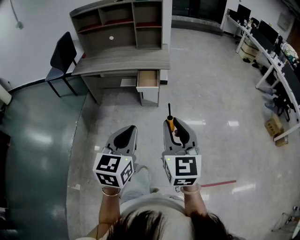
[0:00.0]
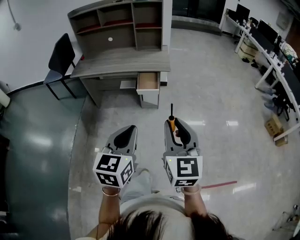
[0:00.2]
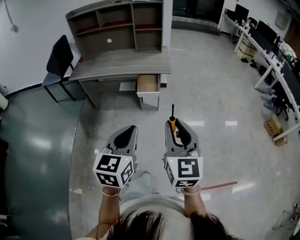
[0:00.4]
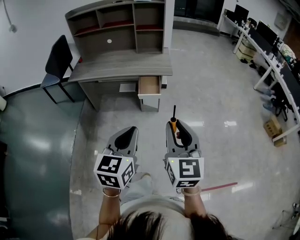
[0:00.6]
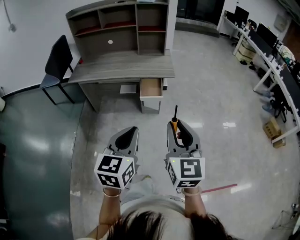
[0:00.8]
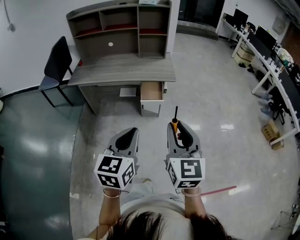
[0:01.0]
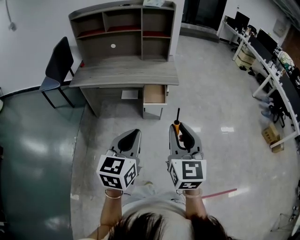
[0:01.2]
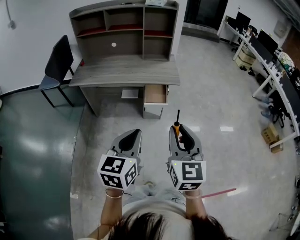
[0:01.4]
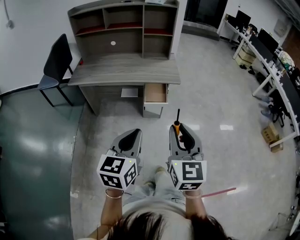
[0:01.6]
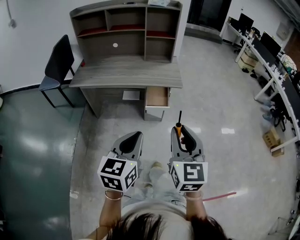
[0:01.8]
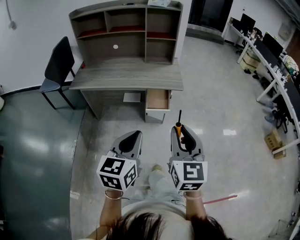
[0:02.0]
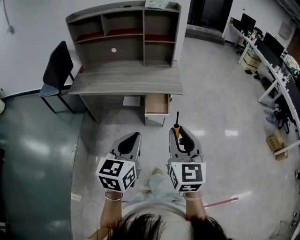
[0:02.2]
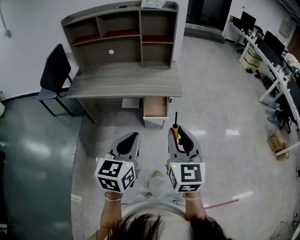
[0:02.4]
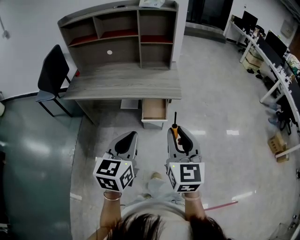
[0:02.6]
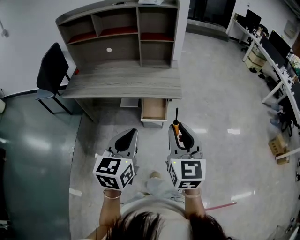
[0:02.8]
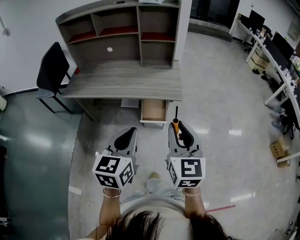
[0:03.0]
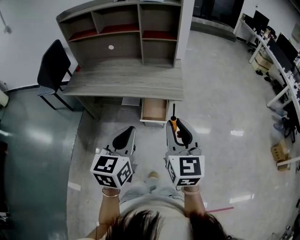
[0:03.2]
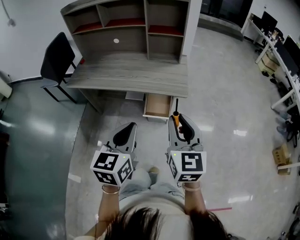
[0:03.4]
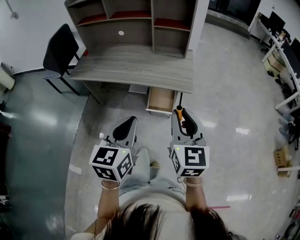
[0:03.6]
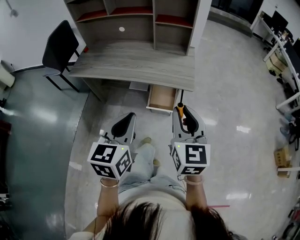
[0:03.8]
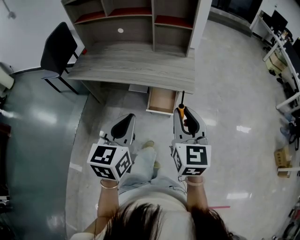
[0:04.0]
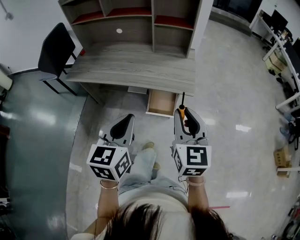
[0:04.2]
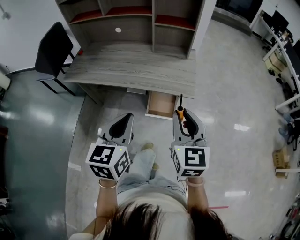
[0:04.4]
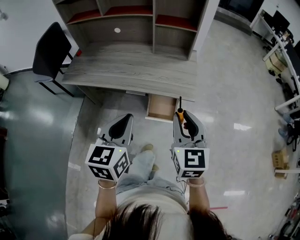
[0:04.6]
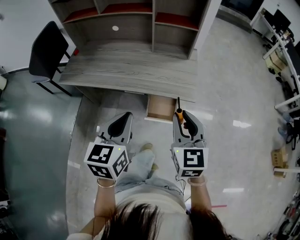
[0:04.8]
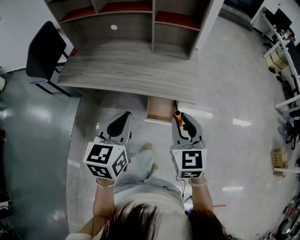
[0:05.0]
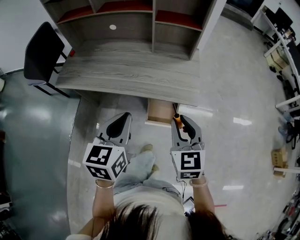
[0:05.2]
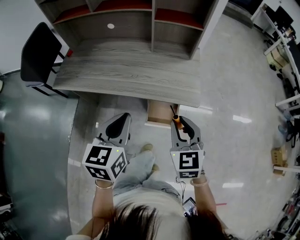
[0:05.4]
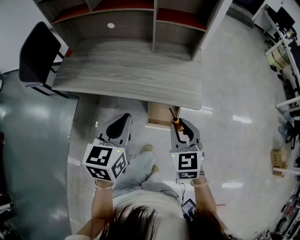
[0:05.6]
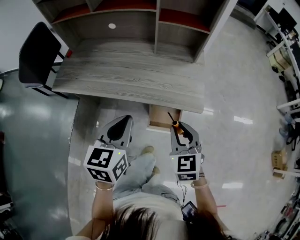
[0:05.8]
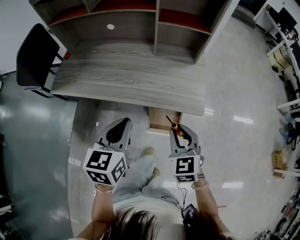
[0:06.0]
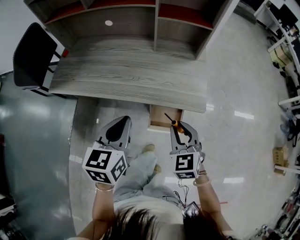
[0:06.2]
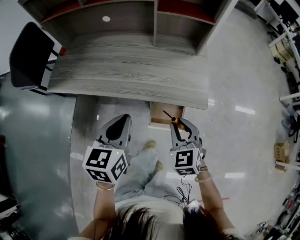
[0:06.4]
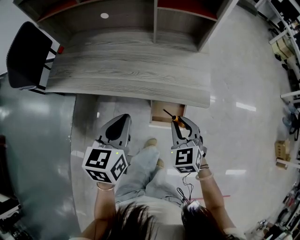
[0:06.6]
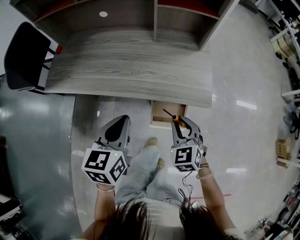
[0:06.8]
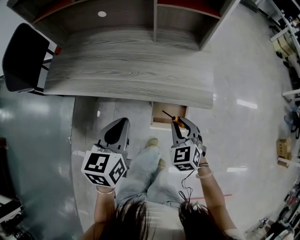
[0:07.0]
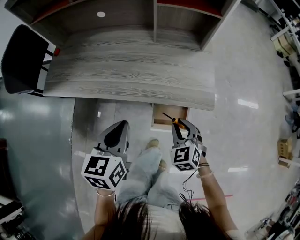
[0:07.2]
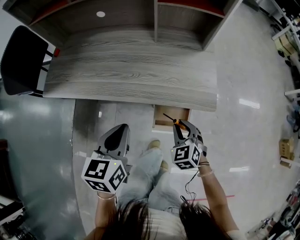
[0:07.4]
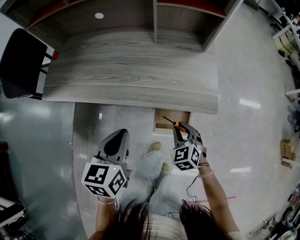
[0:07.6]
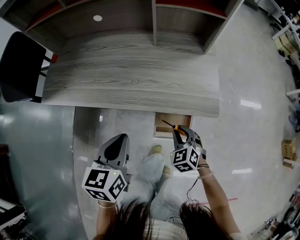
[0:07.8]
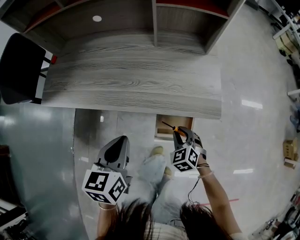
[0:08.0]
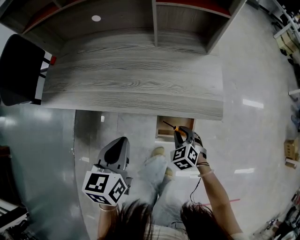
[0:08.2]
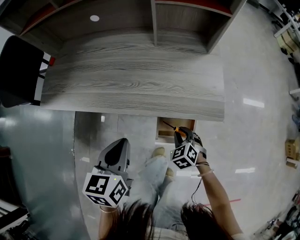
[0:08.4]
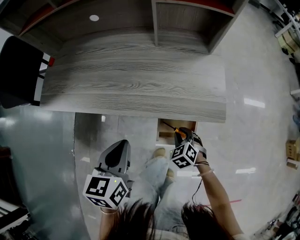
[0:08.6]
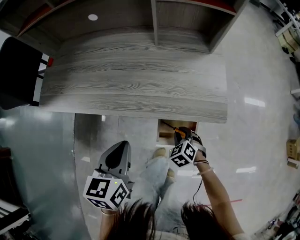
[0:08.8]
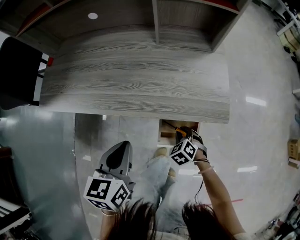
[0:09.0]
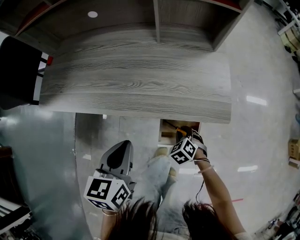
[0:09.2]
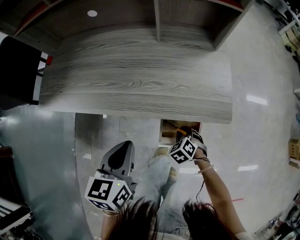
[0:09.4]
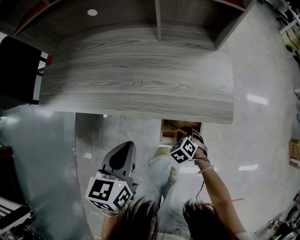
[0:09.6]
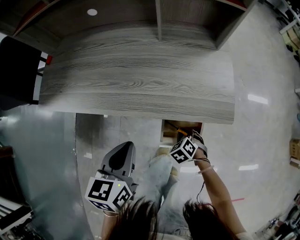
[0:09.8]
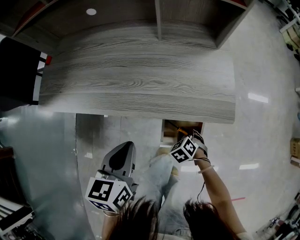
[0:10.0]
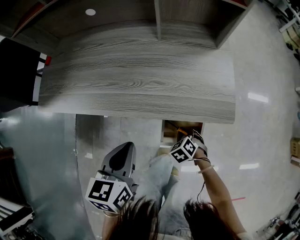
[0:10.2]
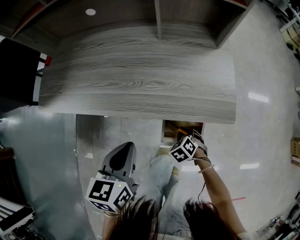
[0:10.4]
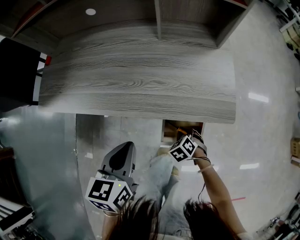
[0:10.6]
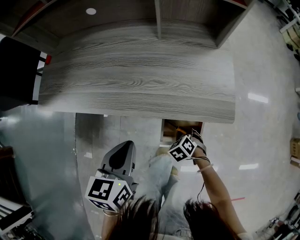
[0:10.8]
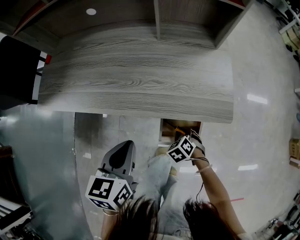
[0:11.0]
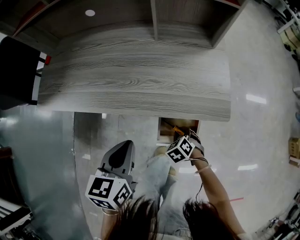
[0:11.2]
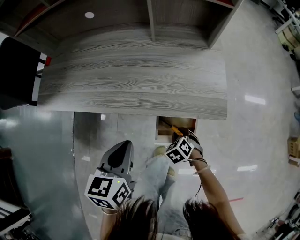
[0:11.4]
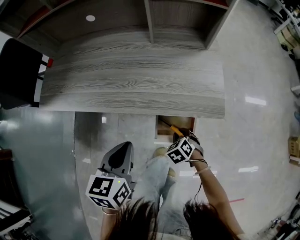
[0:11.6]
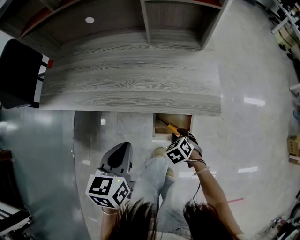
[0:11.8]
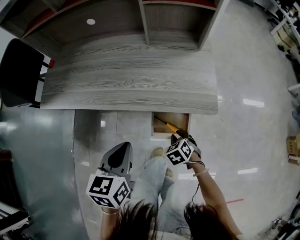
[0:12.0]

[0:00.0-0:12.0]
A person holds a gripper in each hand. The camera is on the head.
0:00.0 to 0:01.6: The two grippers go some 20 cm forward and to the left.
0:01.6 to 0:03.0: Both grippers move forward, roughly 20 cm.
0:03.0 to 0:04.4: The grippers both shift forward by some 10 cm.
0:04.4 to 0:06.0: The right gripper travels downward and forward by approximately 20 cm, and rotates approximately 20 degrees. Meanwhile the left gripper heads forward and downward, covering approximately 20 cm.
0:06.0 to 0:07.6: The left gripper goes some 10 cm downward, while the right gripper moves downward, about 20 cm.
0:07.6 to 0:09.0: The left gripper ends up some 5 cm from where it was, while the right gripper heads downward, covering some 15 cm.
0:09.0 to 0:10.4: There are only small adjustments of the grippers.
0:10.4 to 0:12.0: The right gripper moves upward, about 5 cm. The left gripper heads backward, covering approximately 5 cm.

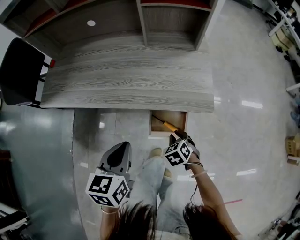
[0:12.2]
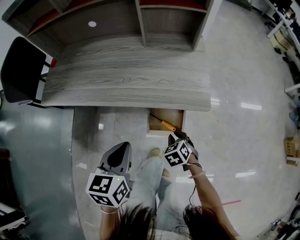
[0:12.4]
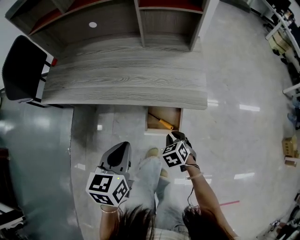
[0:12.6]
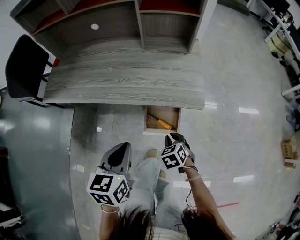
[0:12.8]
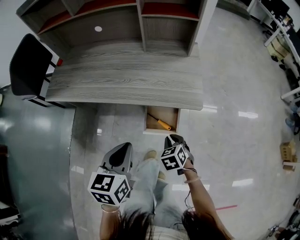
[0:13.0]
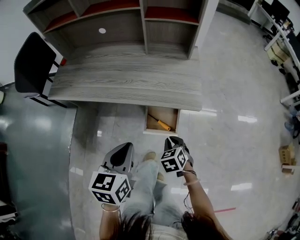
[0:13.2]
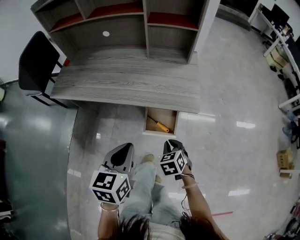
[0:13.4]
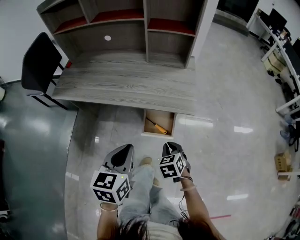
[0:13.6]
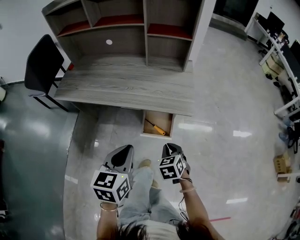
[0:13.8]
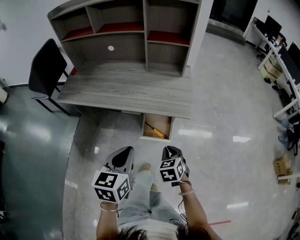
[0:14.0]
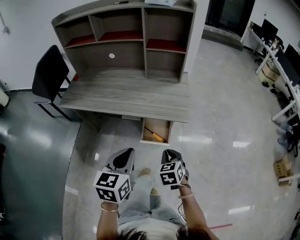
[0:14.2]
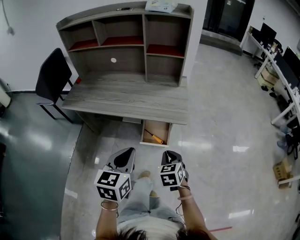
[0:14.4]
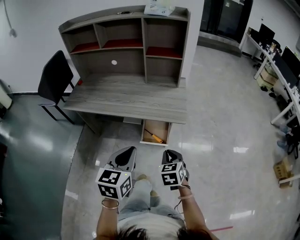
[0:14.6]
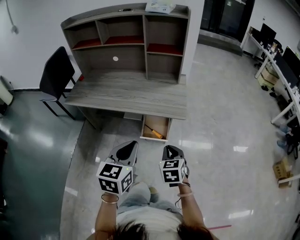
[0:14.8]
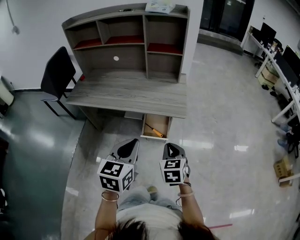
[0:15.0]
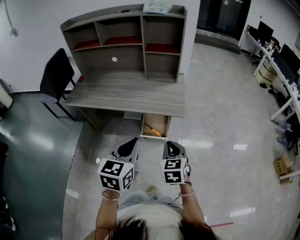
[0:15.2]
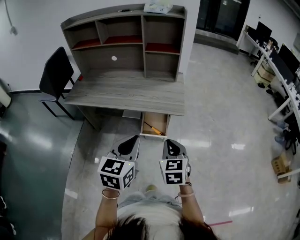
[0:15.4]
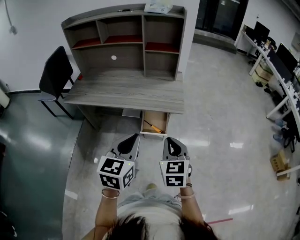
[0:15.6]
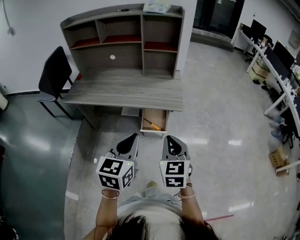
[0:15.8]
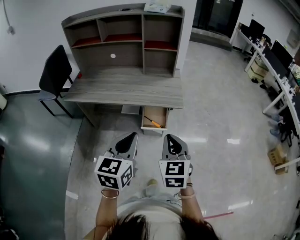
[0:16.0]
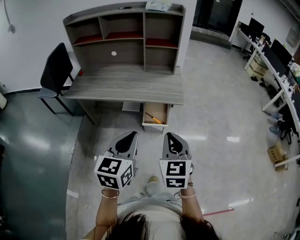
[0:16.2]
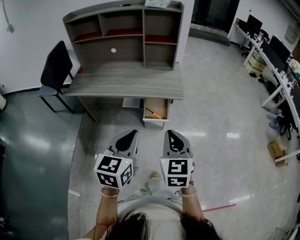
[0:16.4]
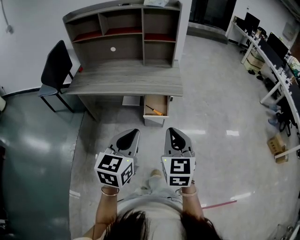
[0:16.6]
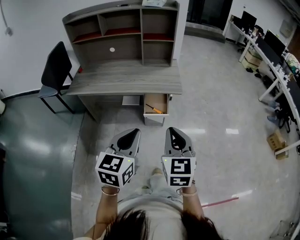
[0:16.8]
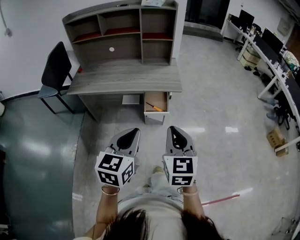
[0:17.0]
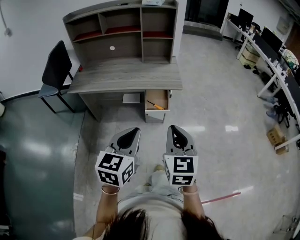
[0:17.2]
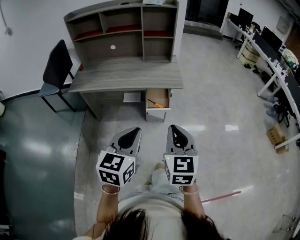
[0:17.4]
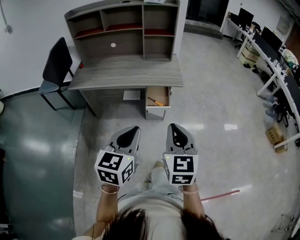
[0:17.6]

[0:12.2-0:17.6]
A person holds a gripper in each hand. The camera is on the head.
0:12.2 to 0:13.6: The left gripper travels backward and upward by roughly 15 cm. Meanwhile the right gripper goes about 15 cm upward and backward.
0:13.6 to 0:15.0: The left gripper travels upward, backward and to the right by about 15 cm. Meanwhile the right gripper heads upward and backward, covering some 20 cm, and changes its angle by some 20 degrees.
0:15.0 to 0:16.2: The right gripper heads upward and backward, covering roughly 15 cm. Meanwhile the left gripper goes about 10 cm backward.
0:16.2 to 0:17.6: Both grippers travel together backward, roughly 10 cm.

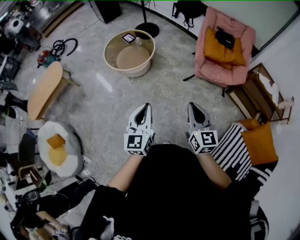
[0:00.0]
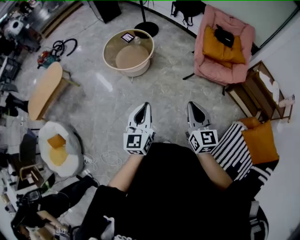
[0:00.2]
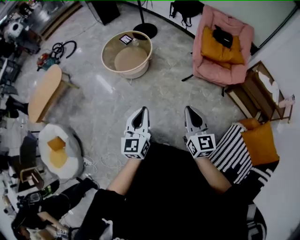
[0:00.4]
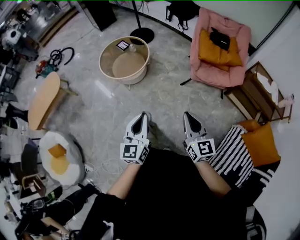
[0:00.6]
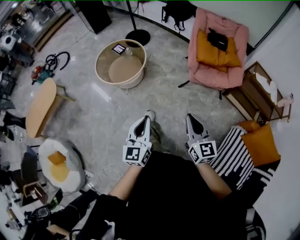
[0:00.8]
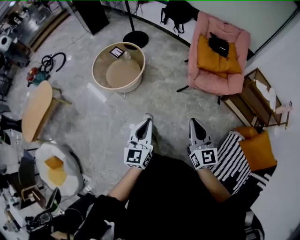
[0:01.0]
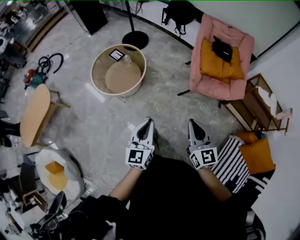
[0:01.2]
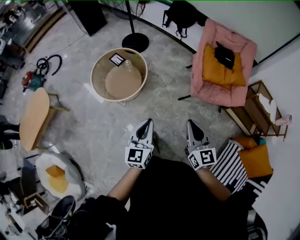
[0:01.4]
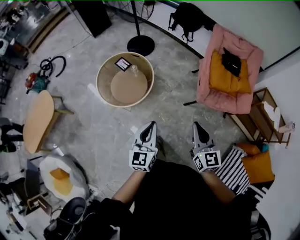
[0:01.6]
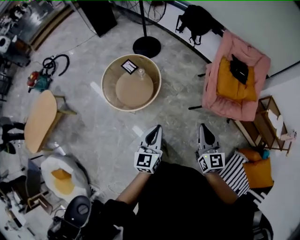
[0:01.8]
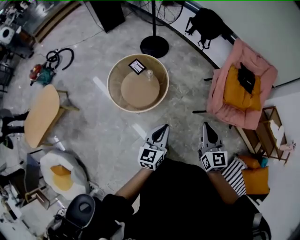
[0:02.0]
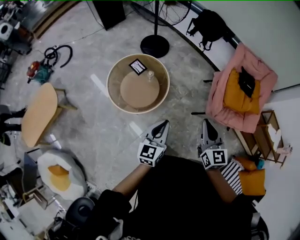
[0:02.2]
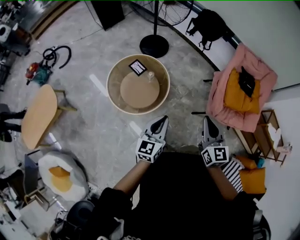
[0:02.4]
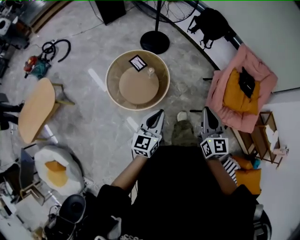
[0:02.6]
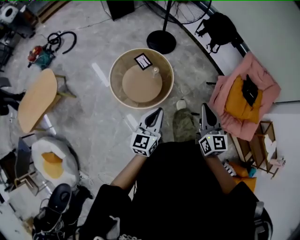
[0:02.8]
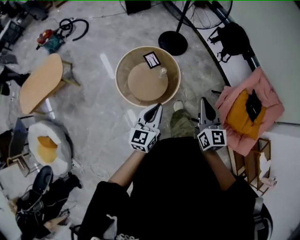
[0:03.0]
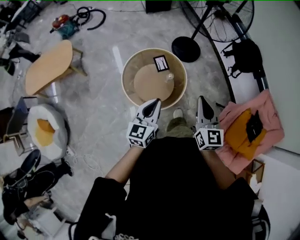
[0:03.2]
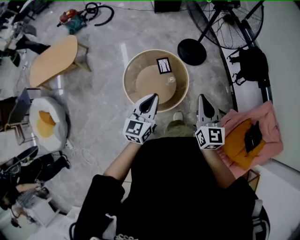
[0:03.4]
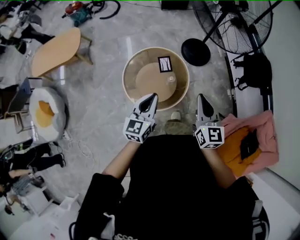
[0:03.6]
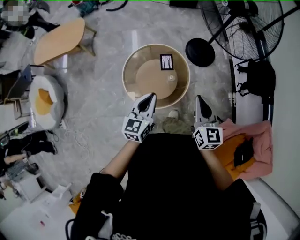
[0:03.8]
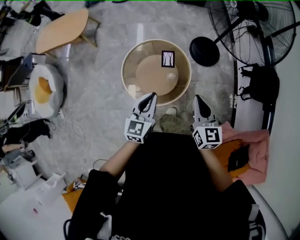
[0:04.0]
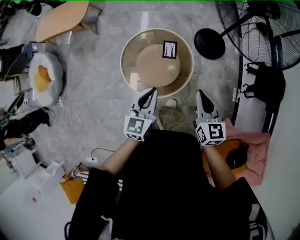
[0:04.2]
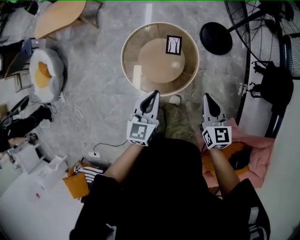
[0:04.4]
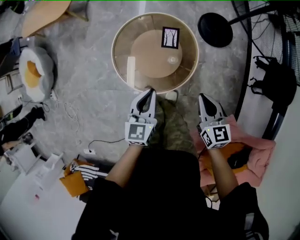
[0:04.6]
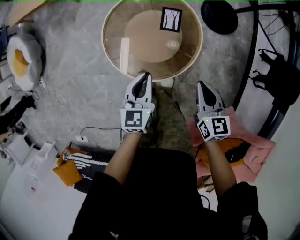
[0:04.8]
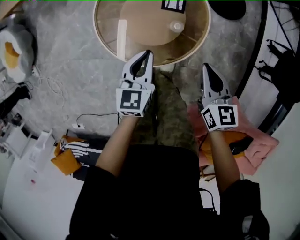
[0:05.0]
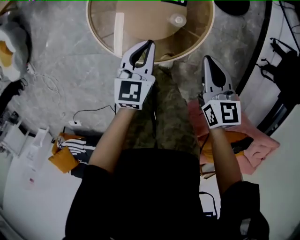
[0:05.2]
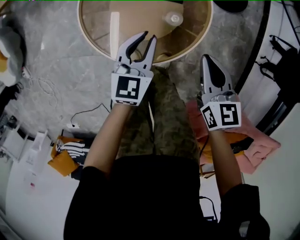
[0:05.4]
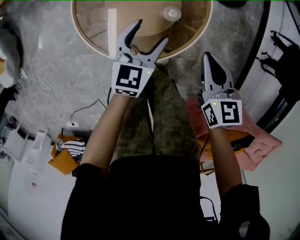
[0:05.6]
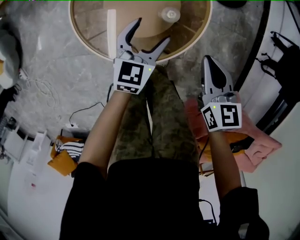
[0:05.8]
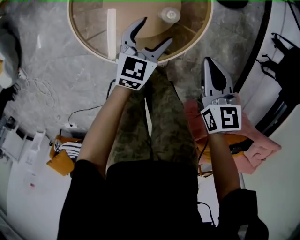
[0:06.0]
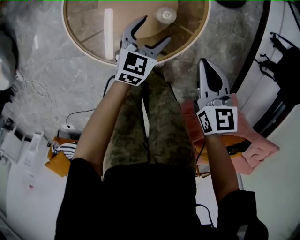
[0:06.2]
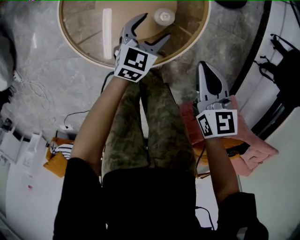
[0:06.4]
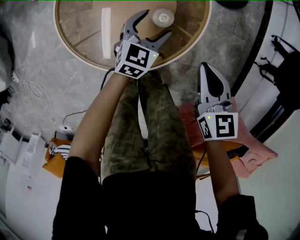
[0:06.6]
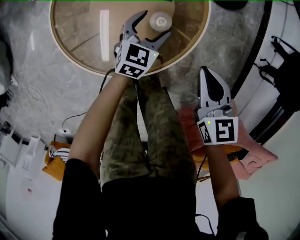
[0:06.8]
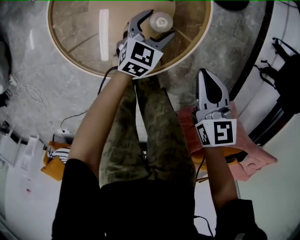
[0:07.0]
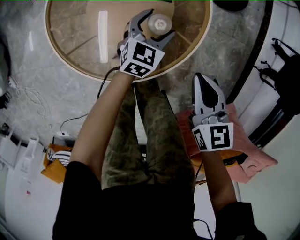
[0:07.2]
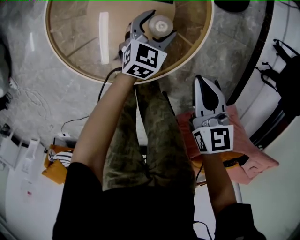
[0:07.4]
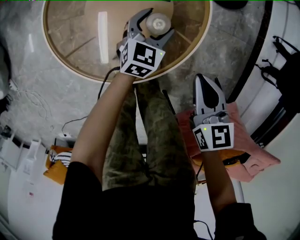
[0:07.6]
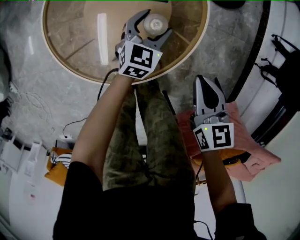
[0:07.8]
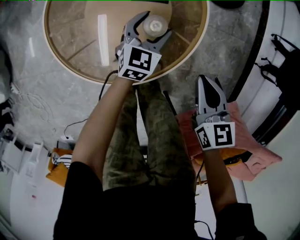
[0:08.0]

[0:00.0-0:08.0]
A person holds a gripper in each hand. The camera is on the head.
0:00.0 to 0:01.6: The two grippers go approximately 40 cm forward.
0:01.6 to 0:03.2: Both grippers travel together forward and to the left, roughly 40 cm. The right gripper turns by roughly 30 degrees. The left gripper changes its angle by approximately 20 degrees.
0:03.2 to 0:04.8: The grippers both shift downward by approximately 35 cm. The left gripper changes its angle by roughly 40 degrees. Meanwhile the right gripper turns by roughly 40 degrees.
0:04.8 to 0:06.4: The left gripper goes some 30 cm downward, swivels about 30 degrees, and opens, while the right gripper heads downward, covering about 20 cm.
0:06.4 to 0:08.0: Both grippers travel together downward, about 5 cm.
